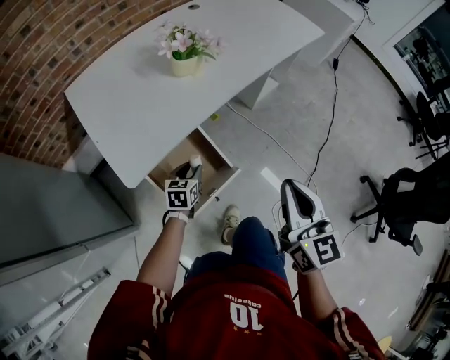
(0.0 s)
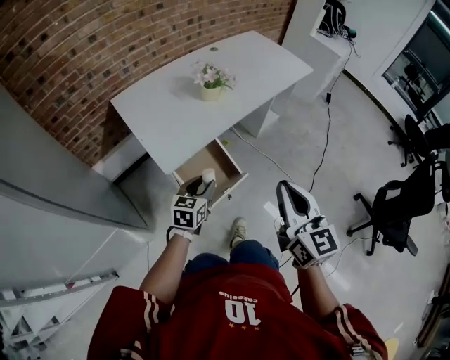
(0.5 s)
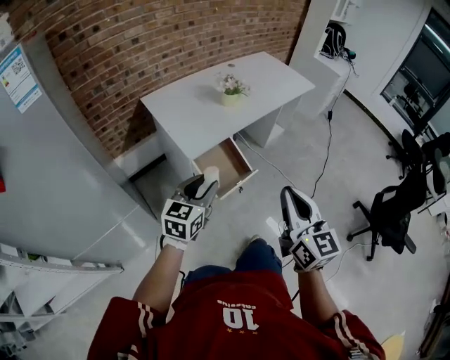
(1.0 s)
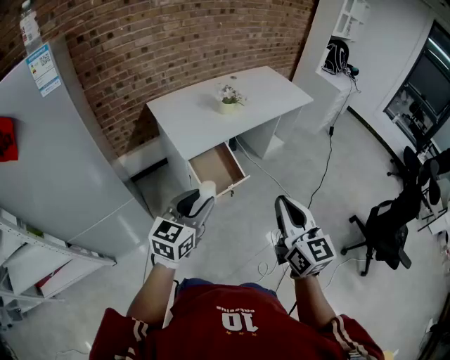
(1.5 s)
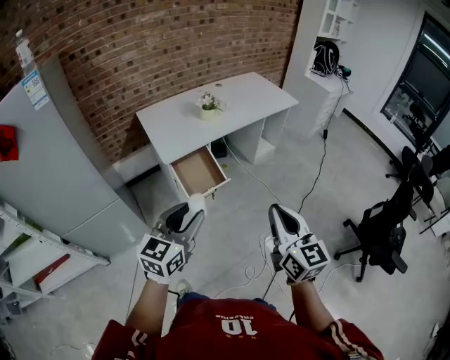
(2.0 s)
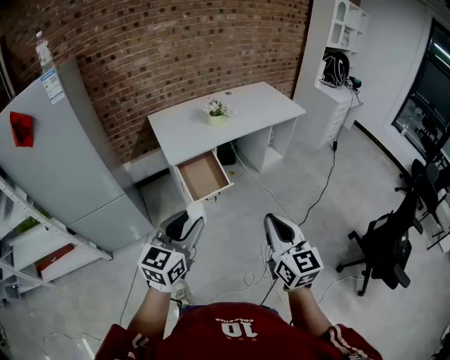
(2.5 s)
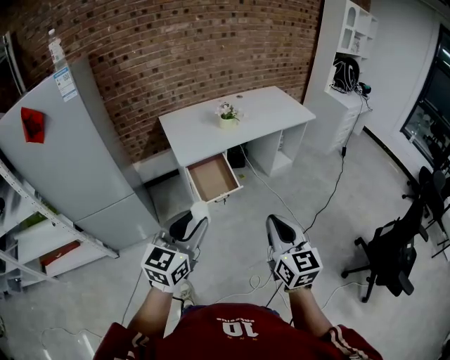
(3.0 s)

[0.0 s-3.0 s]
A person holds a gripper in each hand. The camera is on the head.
0.0 to 1.5 s: The right gripper heads backward and upward, covering some 40 cm; the left gripper shifts about 60 cm upward and backward, and swivels approximately 30 degrees.
1.5 to 3.0 s: The right gripper shifts approximately 15 cm to the right and backward, while the left gripper is displaced to the right, backward and upward by some 20 cm.

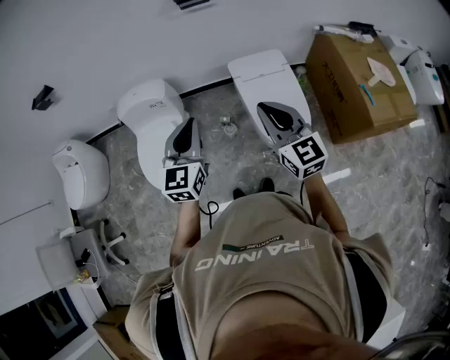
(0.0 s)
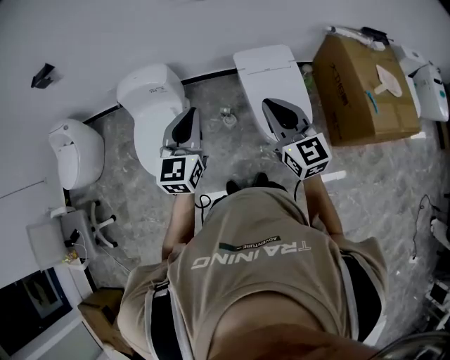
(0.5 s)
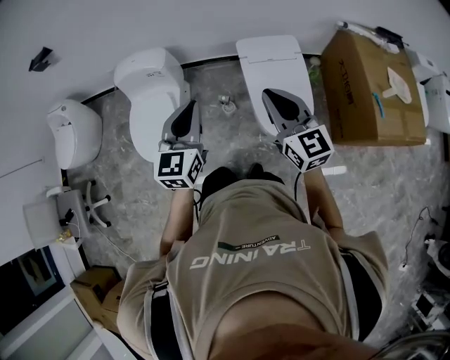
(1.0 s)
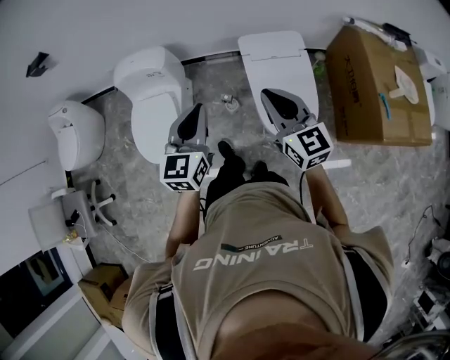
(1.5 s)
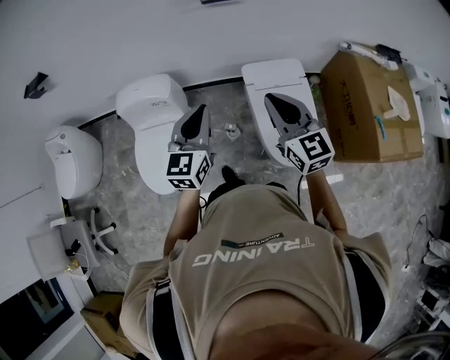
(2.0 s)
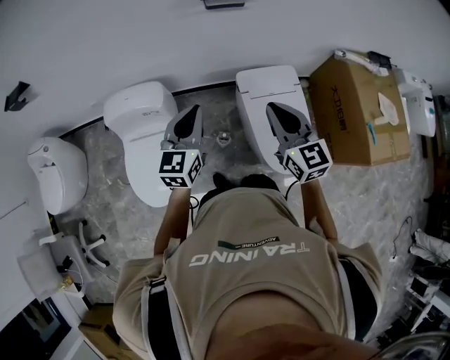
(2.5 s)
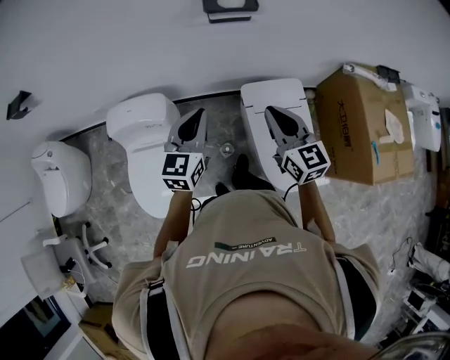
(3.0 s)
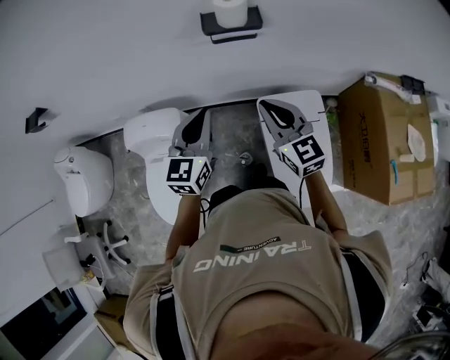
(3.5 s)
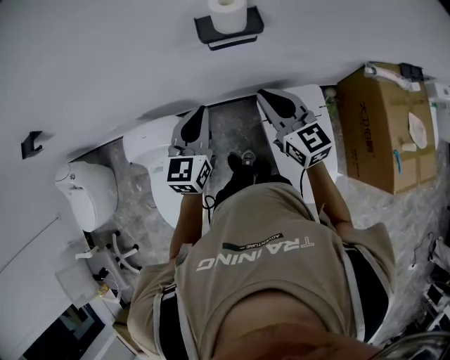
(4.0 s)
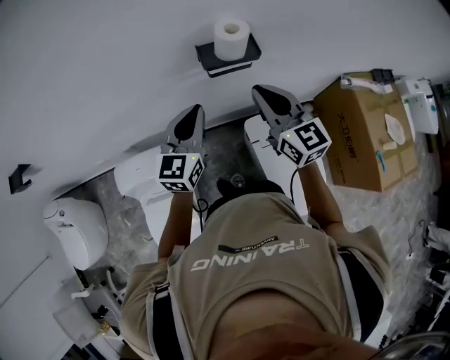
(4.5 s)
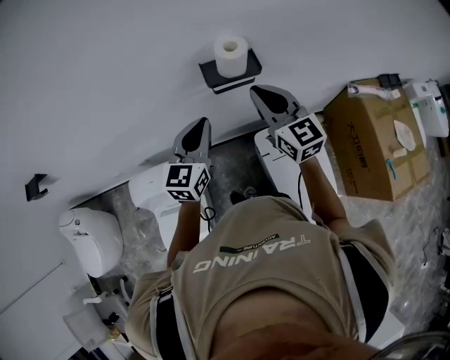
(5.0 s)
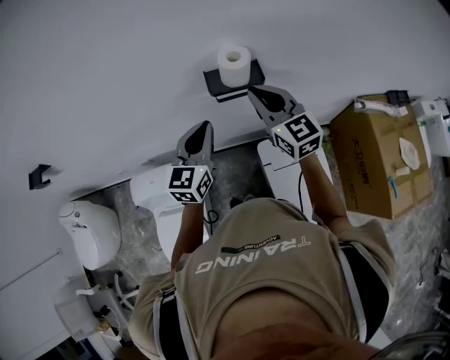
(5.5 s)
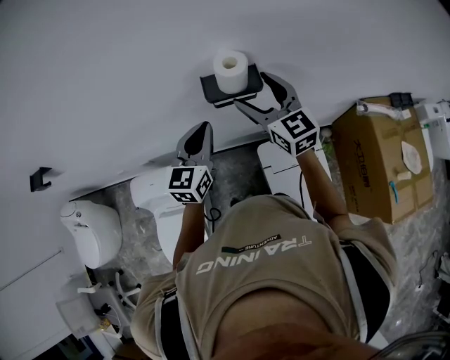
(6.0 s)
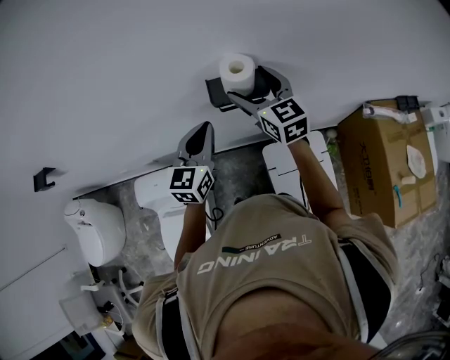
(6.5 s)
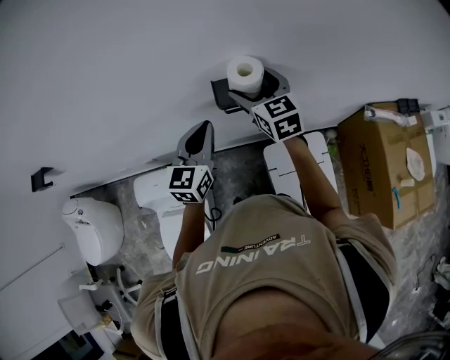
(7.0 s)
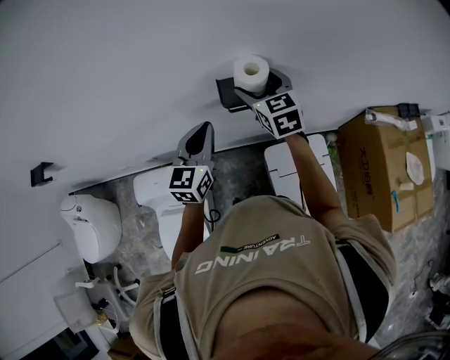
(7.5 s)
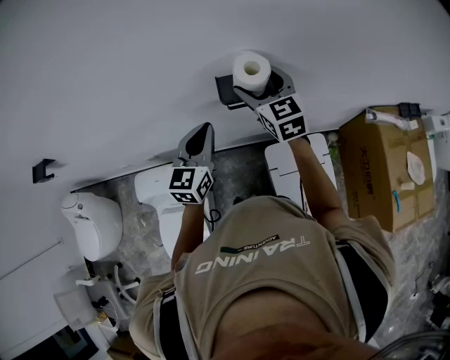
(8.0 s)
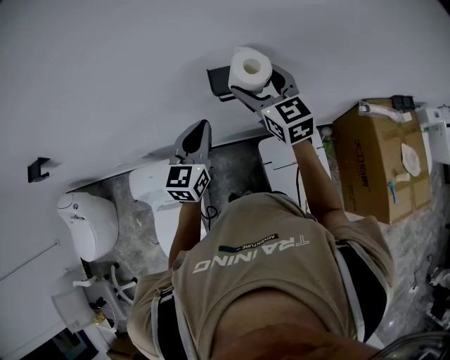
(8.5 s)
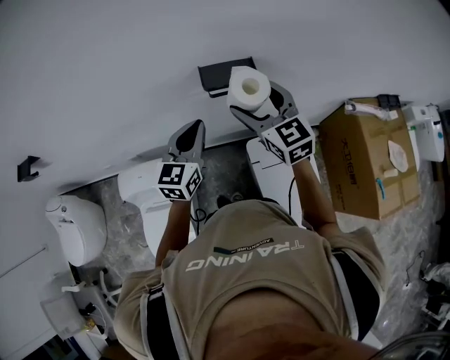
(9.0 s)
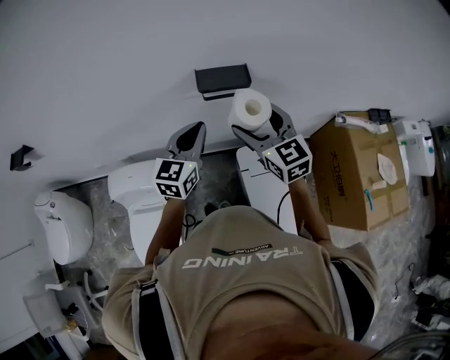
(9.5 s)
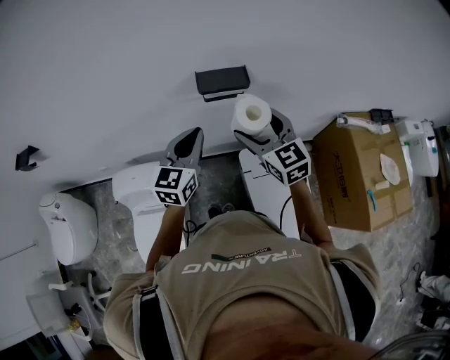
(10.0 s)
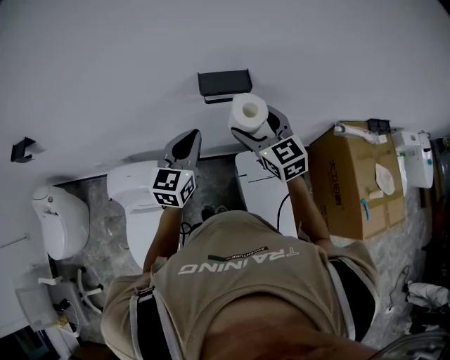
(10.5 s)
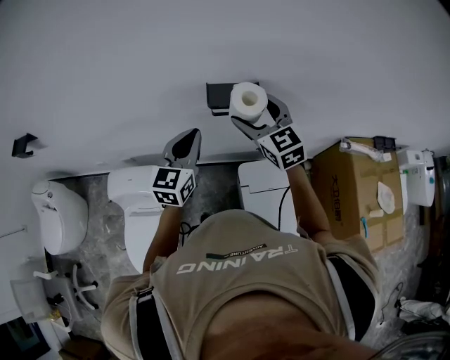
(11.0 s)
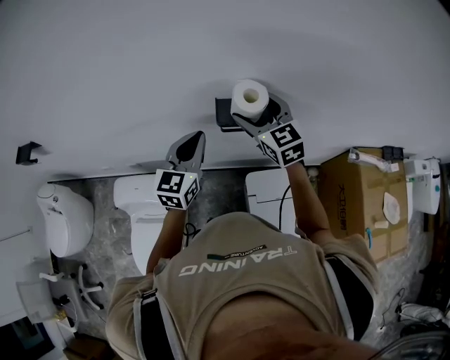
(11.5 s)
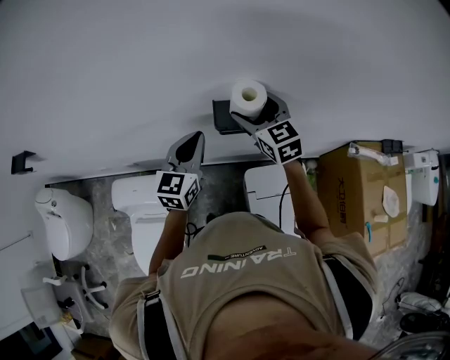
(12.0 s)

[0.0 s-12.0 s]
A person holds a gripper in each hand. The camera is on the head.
0.0 to 2.0 s: Both grippers travel together forward, roughly 15 cm.
2.0 to 4.0 s: Both grippers move forward, approximately 30 cm.
4.0 to 6.0 s: The right gripper is displaced forward and upward by about 15 cm, and opens up; the left gripper moves forward, approximately 10 cm.
6.0 to 8.0 s: The right gripper moves forward, about 5 cm.
8.0 to 10.0 s: The right gripper heads backward, covering approximately 20 cm. Meanwhile the left gripper moves backward, approximately 10 cm.
10.0 to 12.0 s: The left gripper is displaced forward by some 15 cm, while the right gripper shifts approximately 20 cm forward.

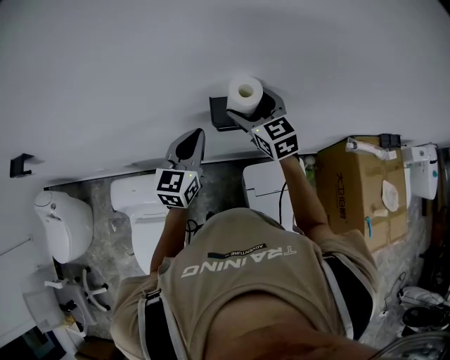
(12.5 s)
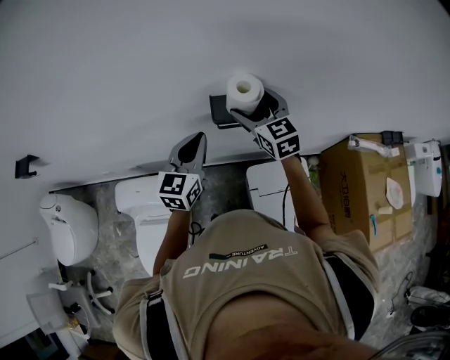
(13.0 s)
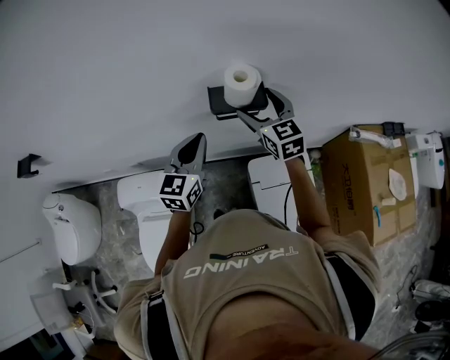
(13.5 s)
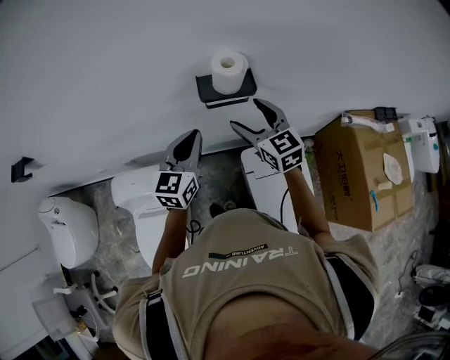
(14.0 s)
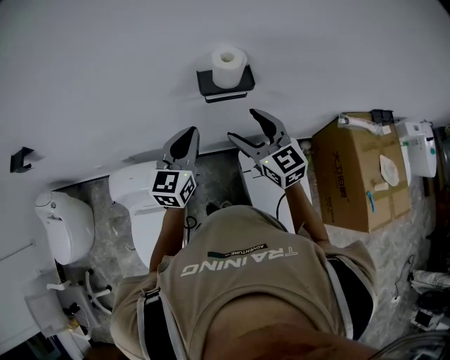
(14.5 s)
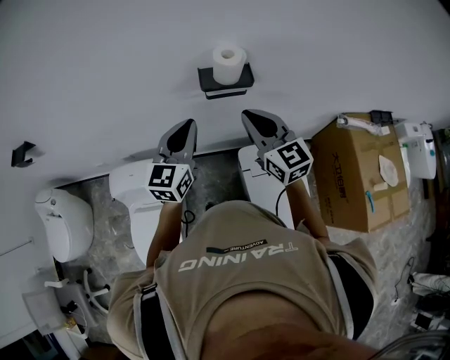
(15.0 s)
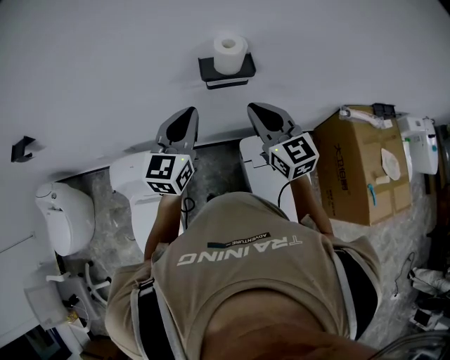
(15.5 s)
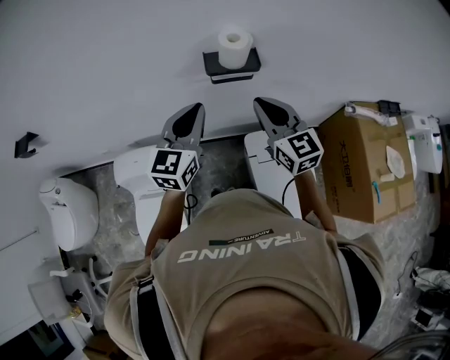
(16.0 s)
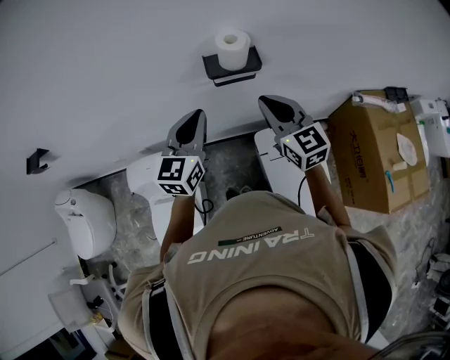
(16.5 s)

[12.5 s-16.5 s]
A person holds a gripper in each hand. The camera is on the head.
12.5 to 14.5 s: The right gripper shifts roughly 20 cm backward, while the left gripper heads backward, covering some 10 cm.
14.5 to 16.5 s: The right gripper closes up.

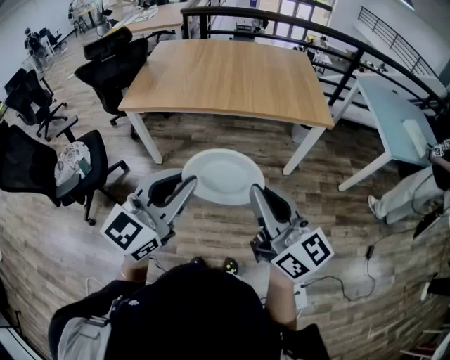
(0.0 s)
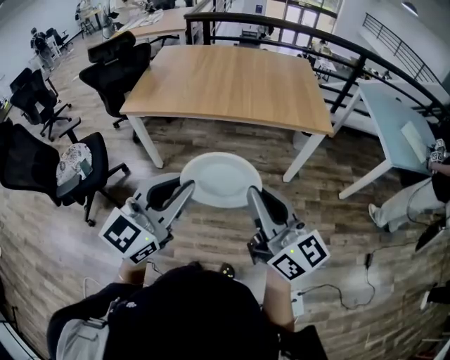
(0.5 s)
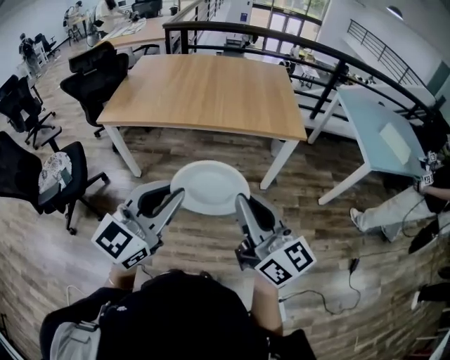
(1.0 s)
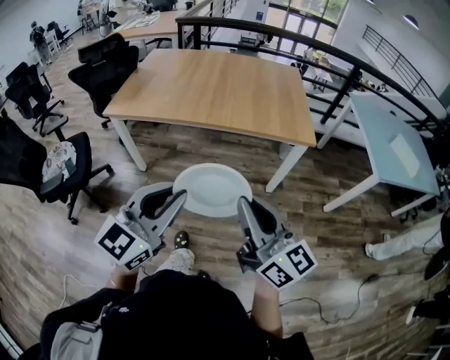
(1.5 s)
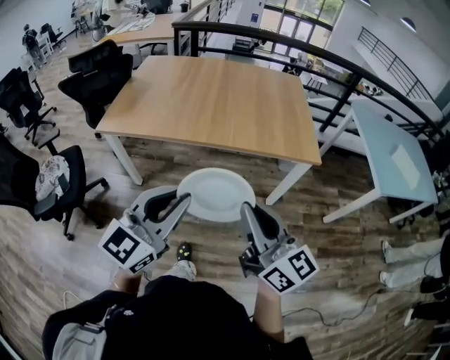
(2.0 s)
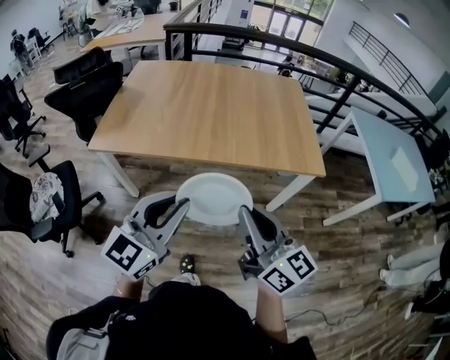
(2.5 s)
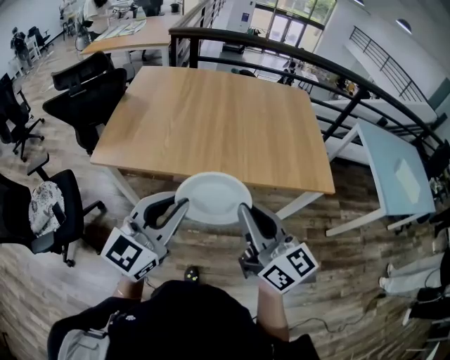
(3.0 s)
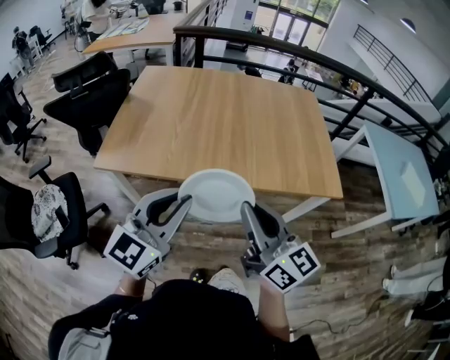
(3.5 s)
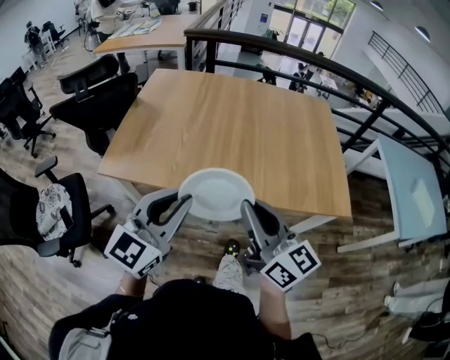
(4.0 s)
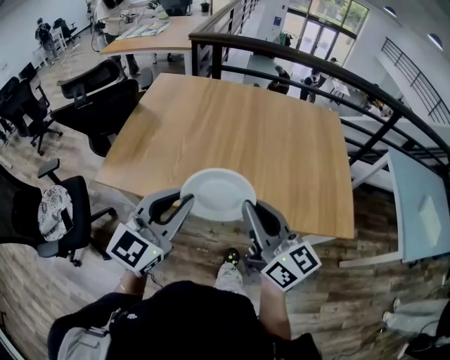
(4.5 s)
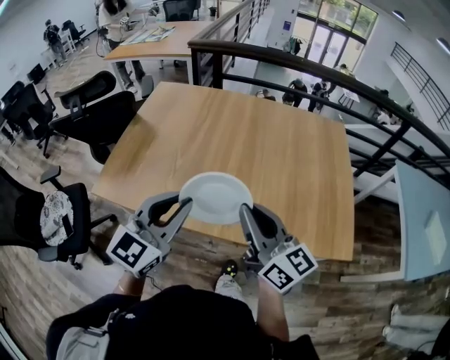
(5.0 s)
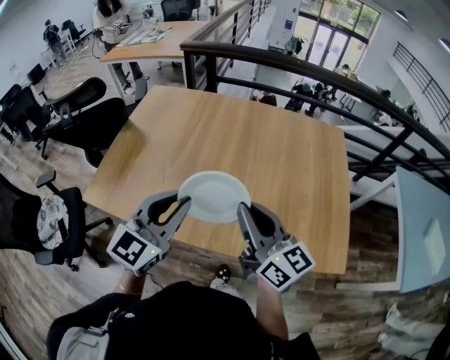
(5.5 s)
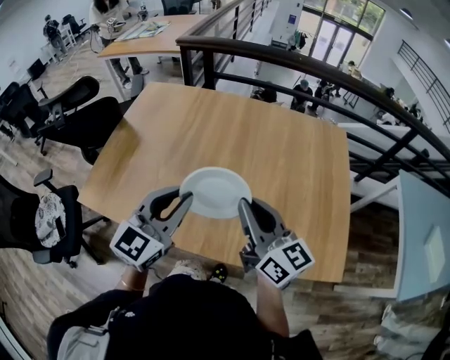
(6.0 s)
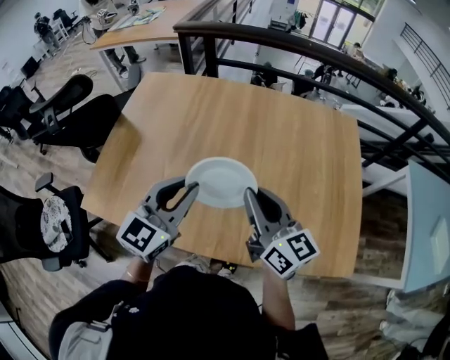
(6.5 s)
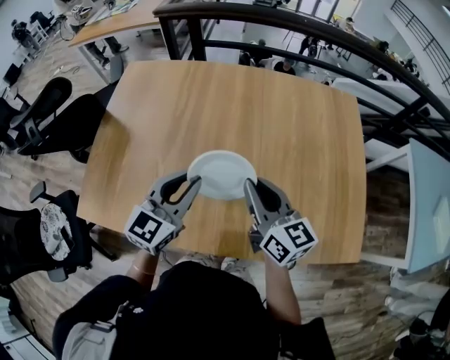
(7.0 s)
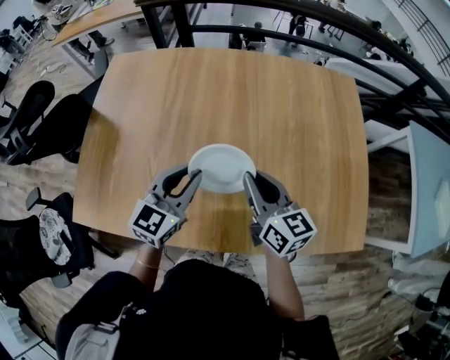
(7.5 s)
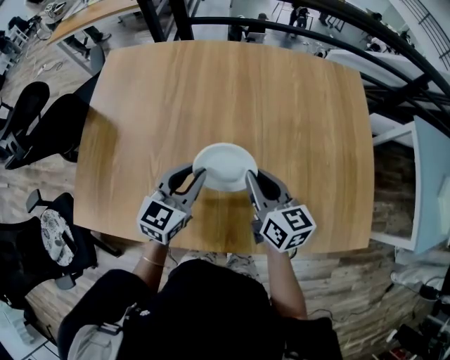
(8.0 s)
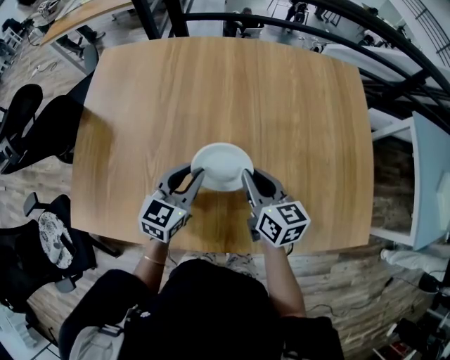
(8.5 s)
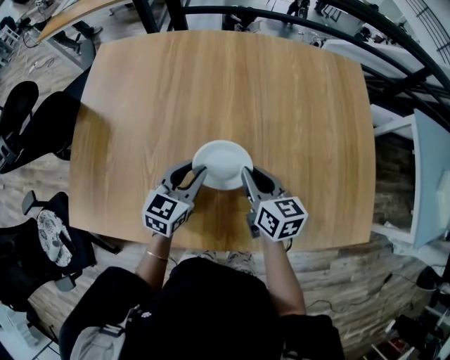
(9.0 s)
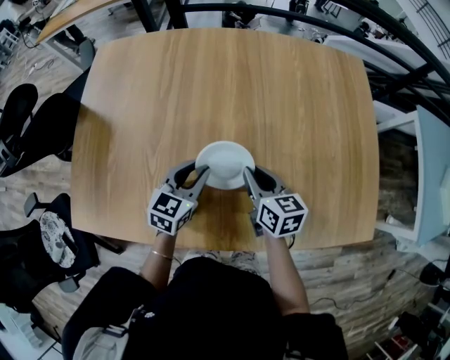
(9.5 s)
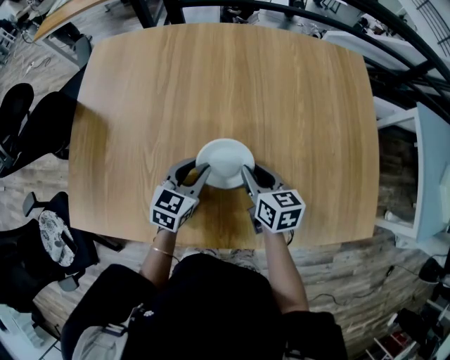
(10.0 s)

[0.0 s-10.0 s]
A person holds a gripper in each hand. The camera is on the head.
0.0 to 2.0 s: Both grippers travel together forward and to the right, about 15 cm.
2.0 to 4.0 s: The two grippers go roughly 30 cm forward and to the left.
4.0 to 6.0 s: The grippers both shift forward and to the right by roughly 30 cm.
6.0 to 8.0 s: Both grippers travel together downward and forward, approximately 20 cm. The right gripper turns by about 30 degrees.
8.0 to 10.0 s: Both grippers move downward, roughly 10 cm.
